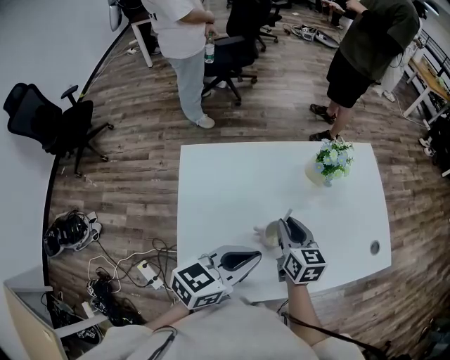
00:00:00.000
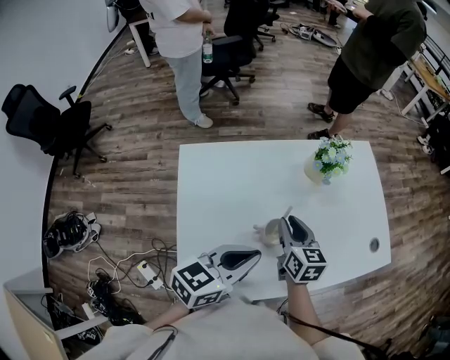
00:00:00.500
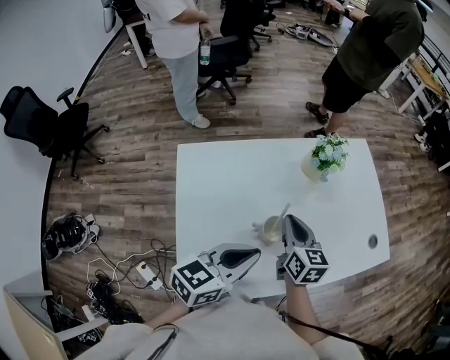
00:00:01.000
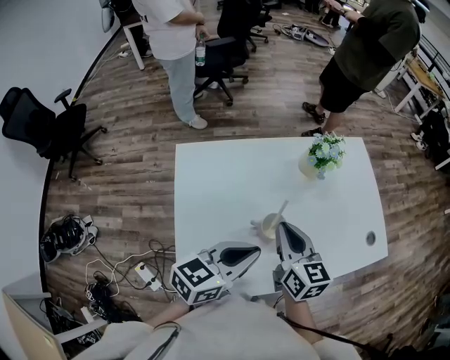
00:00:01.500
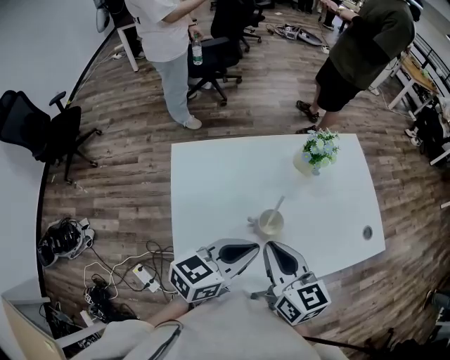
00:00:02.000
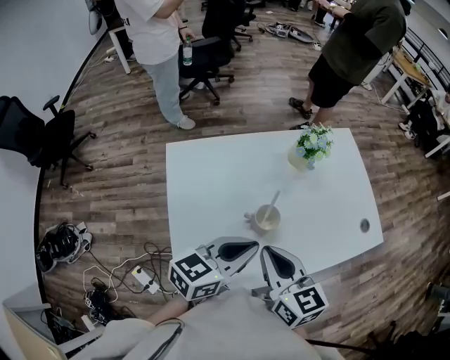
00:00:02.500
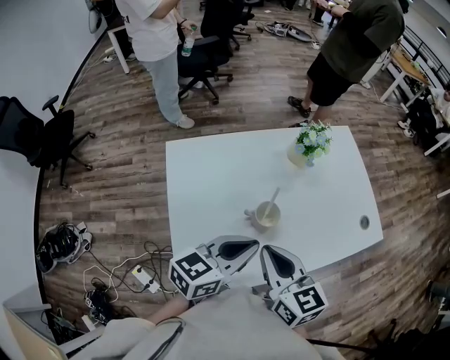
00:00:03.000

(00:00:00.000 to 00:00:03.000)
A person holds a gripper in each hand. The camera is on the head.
00:00:00.000 - 00:00:01.500: The right gripper is displaced upward by about 10 cm.
00:00:01.500 - 00:00:03.000: The right gripper travels backward by roughly 10 cm.

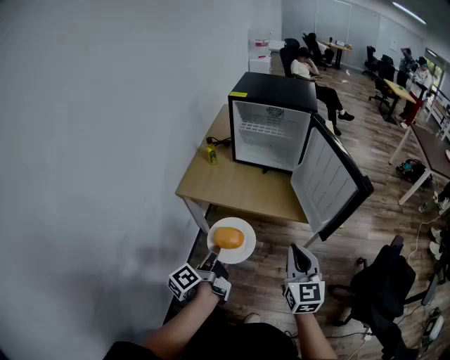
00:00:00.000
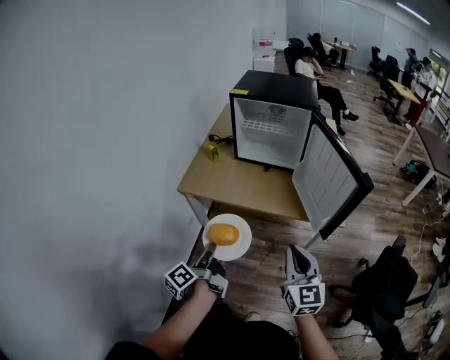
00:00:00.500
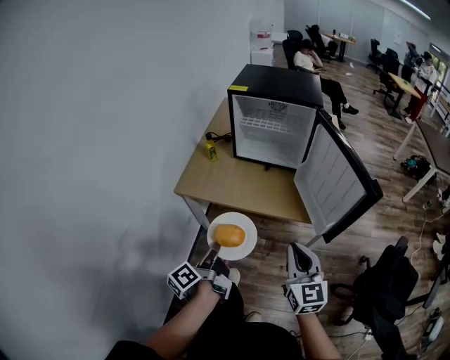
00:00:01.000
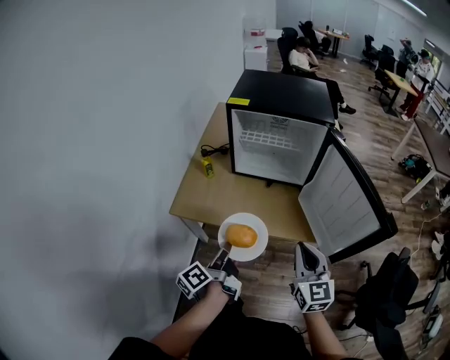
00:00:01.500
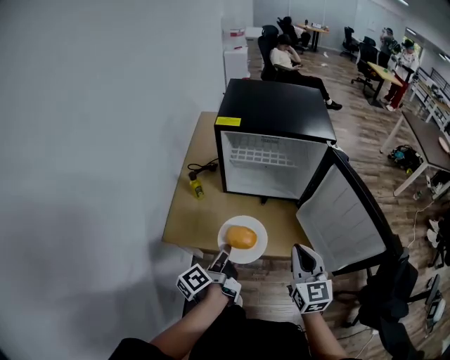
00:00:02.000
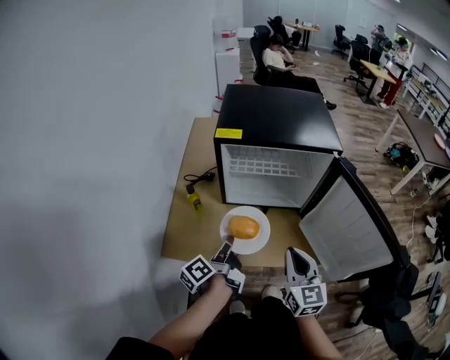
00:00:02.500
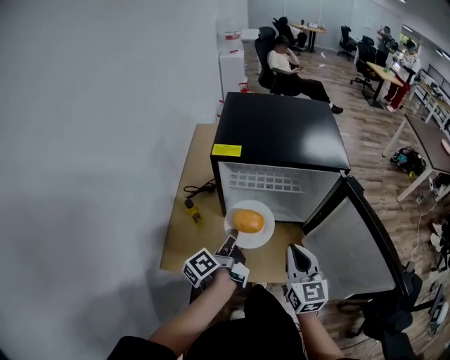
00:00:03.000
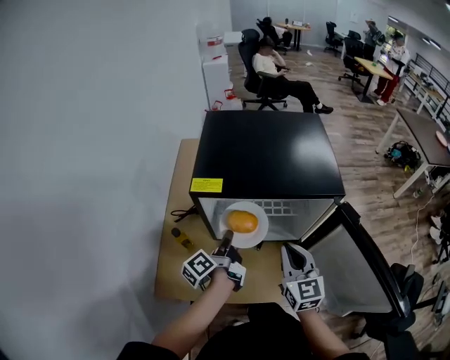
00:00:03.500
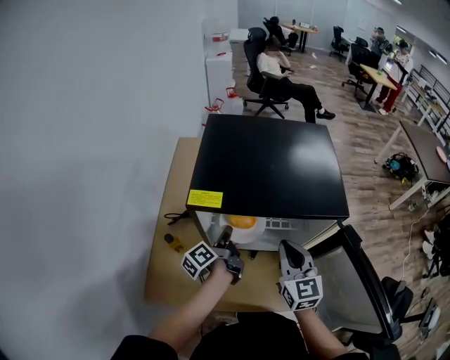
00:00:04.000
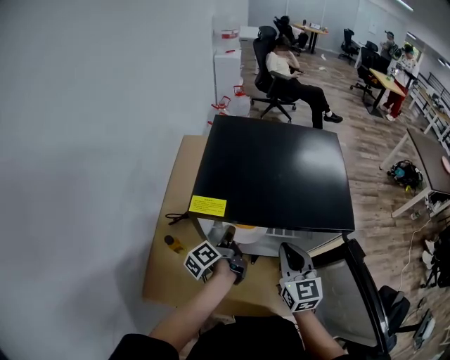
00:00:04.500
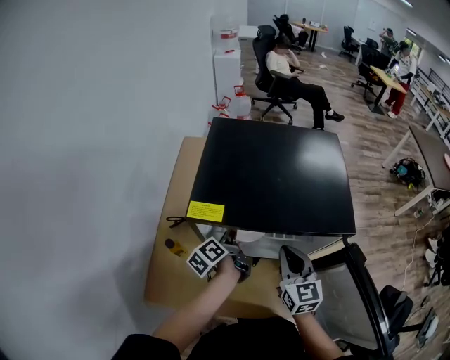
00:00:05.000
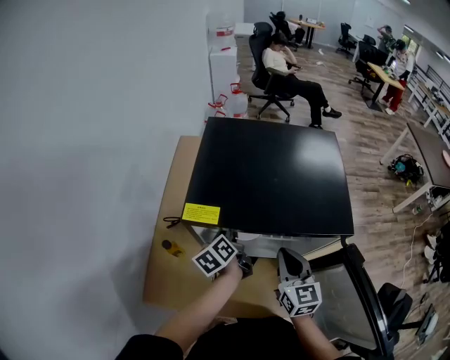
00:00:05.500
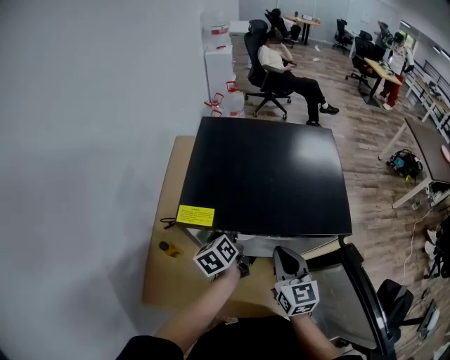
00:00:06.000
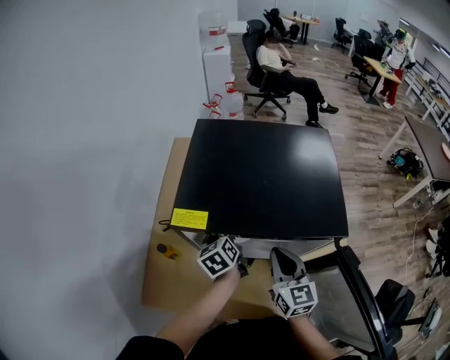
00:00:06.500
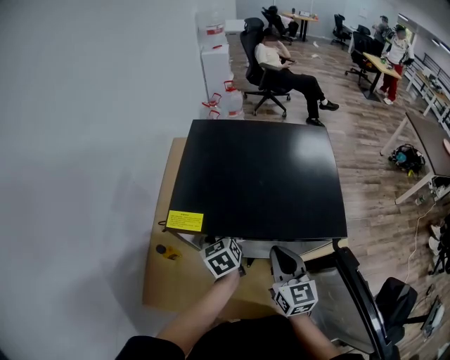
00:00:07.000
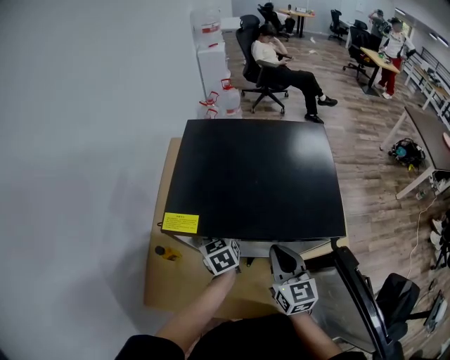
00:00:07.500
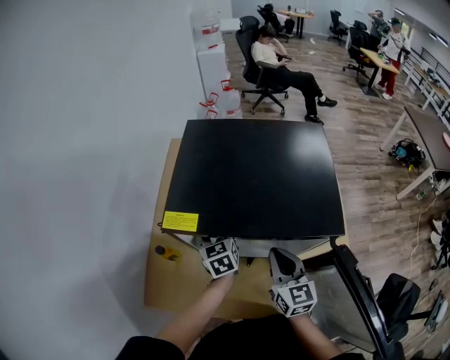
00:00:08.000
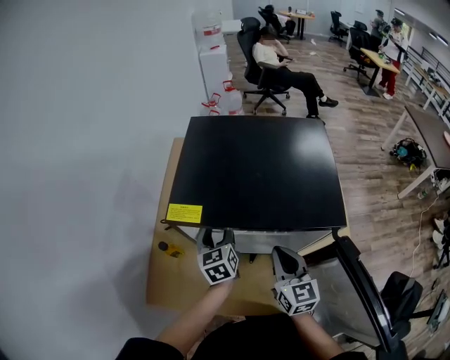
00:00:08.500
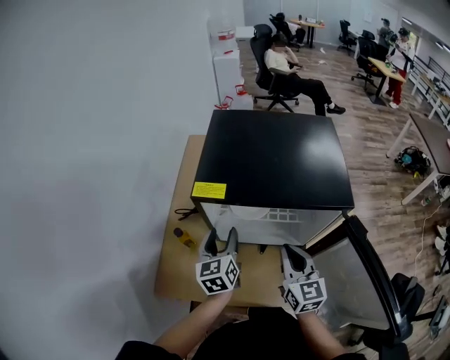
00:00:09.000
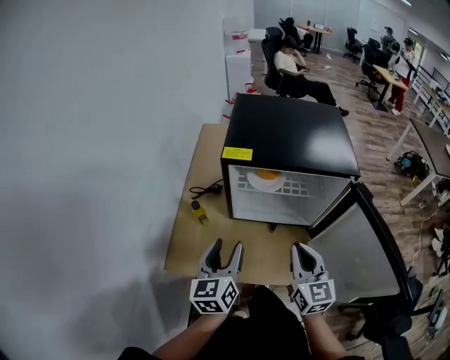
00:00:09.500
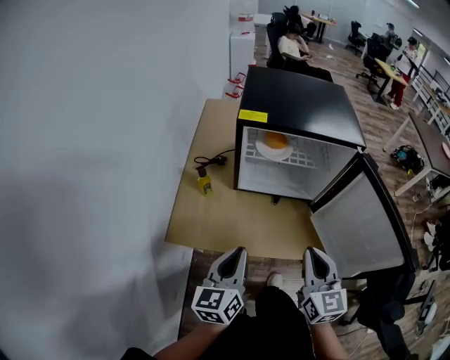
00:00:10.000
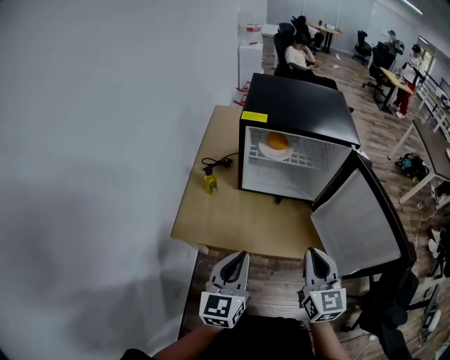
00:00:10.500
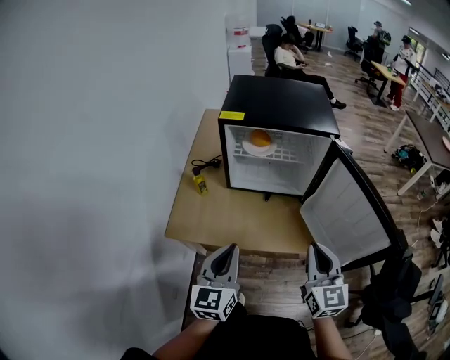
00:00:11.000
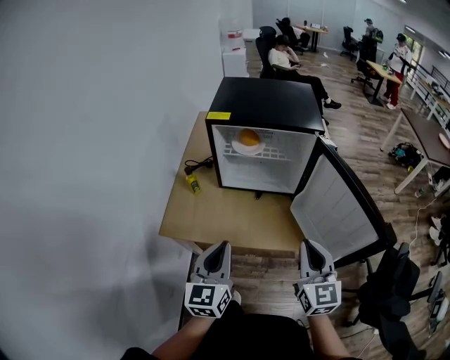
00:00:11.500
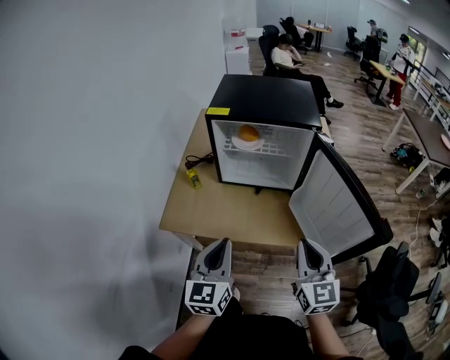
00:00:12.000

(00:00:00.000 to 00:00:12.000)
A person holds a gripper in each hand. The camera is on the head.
00:00:00.000 - 00:00:02.000: The grippers both shift forward by roughly 25 cm.
00:00:02.000 - 00:00:04.000: Both grippers move forward, some 30 cm.
00:00:04.000 - 00:00:06.000: The left gripper goes roughly 5 cm forward, changes its angle by some 40 degrees, and opens up.
00:00:06.000 - 00:00:08.000: The left gripper rotates about 30 degrees, and opens its fingers.
00:00:08.000 - 00:00:10.000: The two grippers go approximately 30 cm backward. The left gripper turns by some 30 degrees, and closes.
00:00:10.000 - 00:00:12.000: The left gripper goes some 15 cm backward, to the right and upward. Meanwhile the right gripper travels to the right and backward by approximately 15 cm.

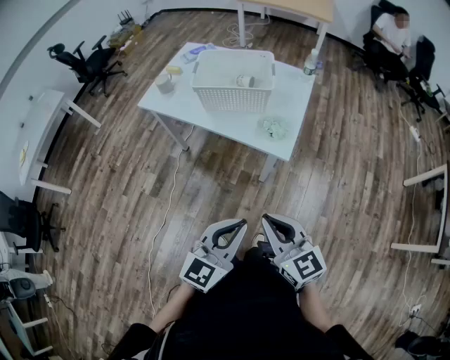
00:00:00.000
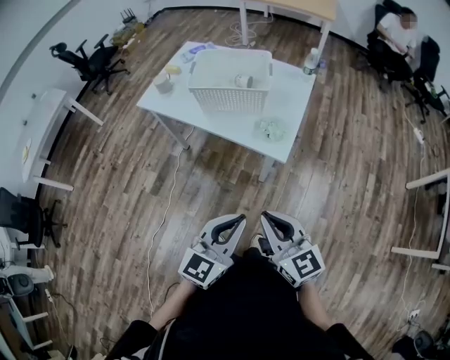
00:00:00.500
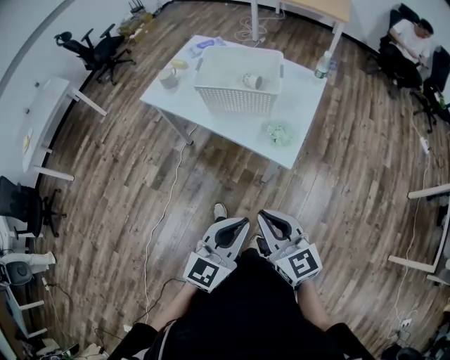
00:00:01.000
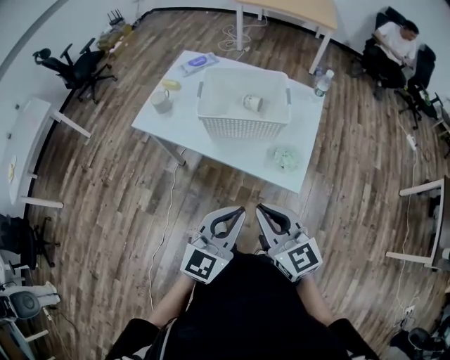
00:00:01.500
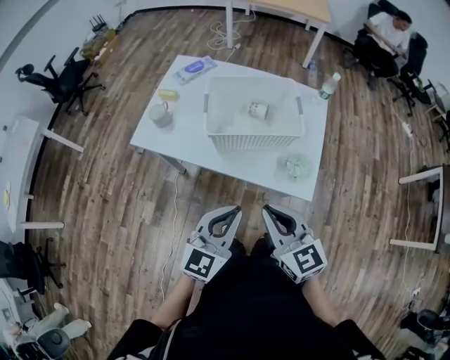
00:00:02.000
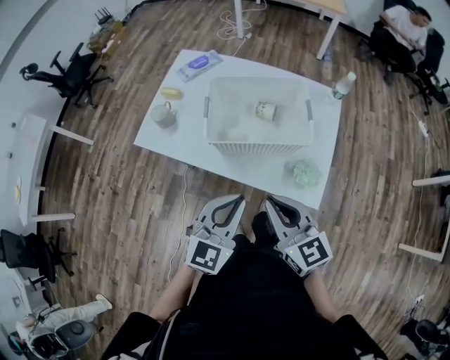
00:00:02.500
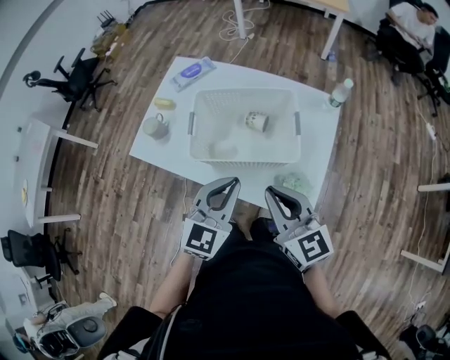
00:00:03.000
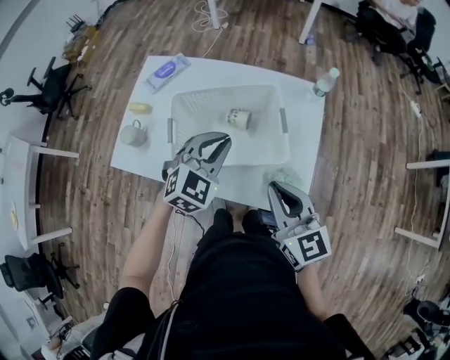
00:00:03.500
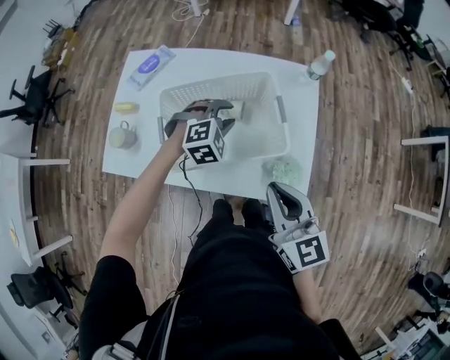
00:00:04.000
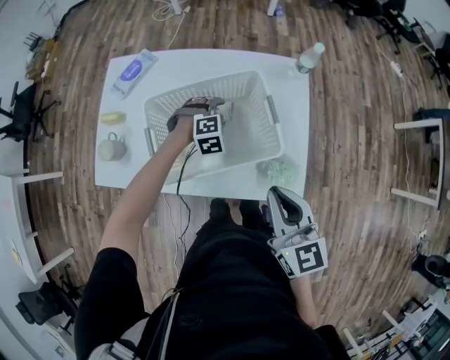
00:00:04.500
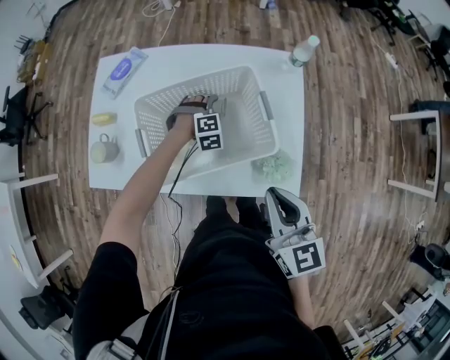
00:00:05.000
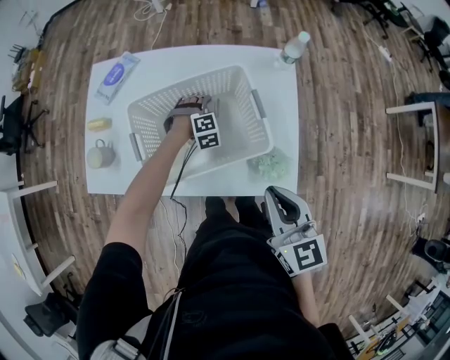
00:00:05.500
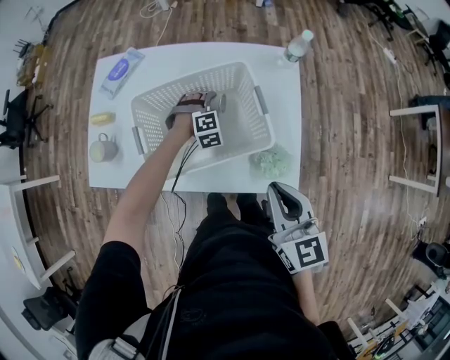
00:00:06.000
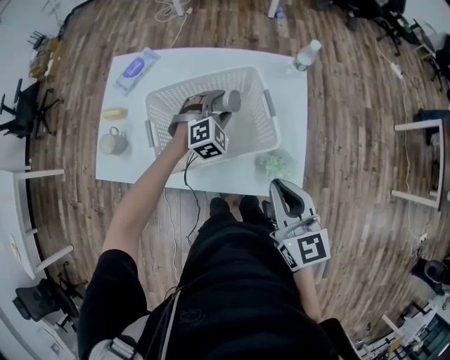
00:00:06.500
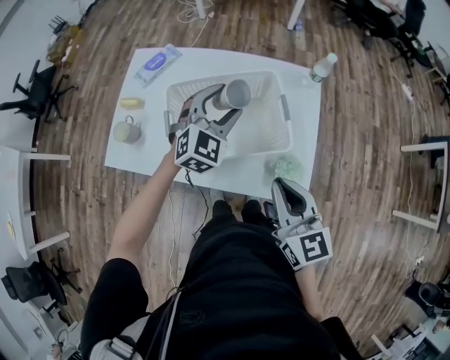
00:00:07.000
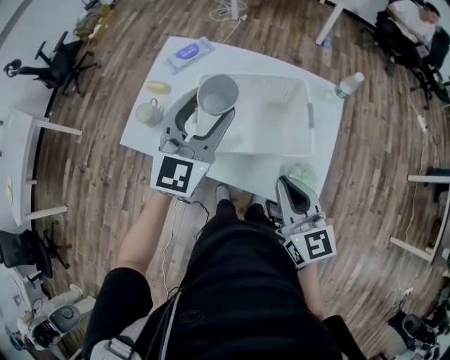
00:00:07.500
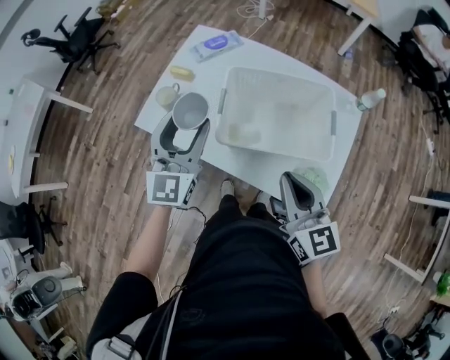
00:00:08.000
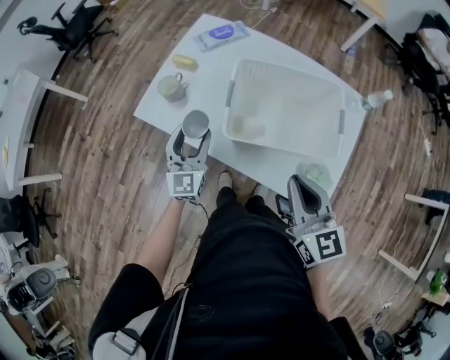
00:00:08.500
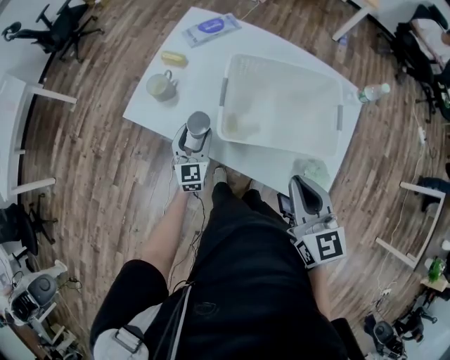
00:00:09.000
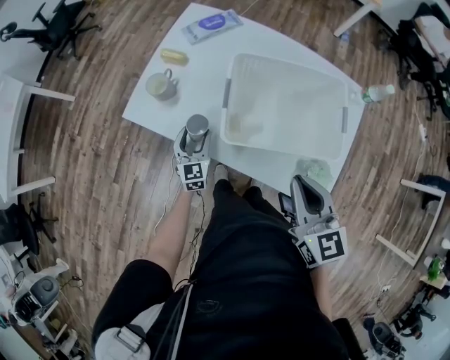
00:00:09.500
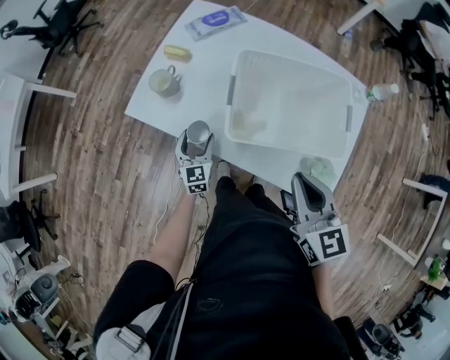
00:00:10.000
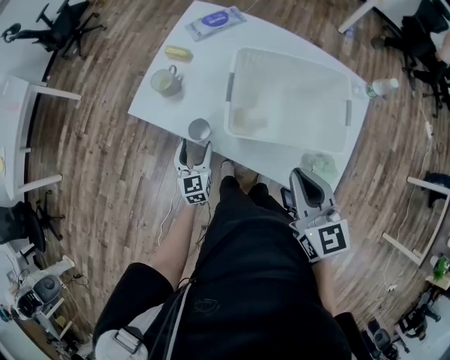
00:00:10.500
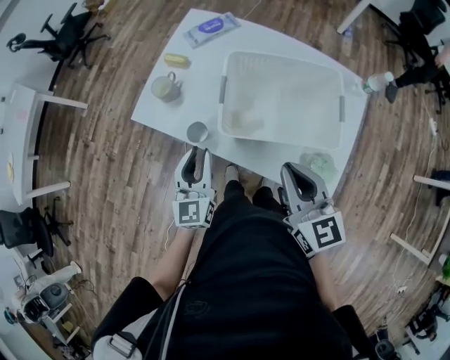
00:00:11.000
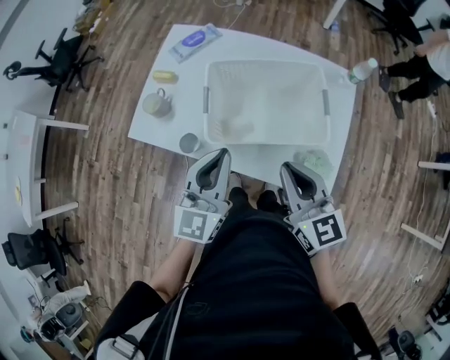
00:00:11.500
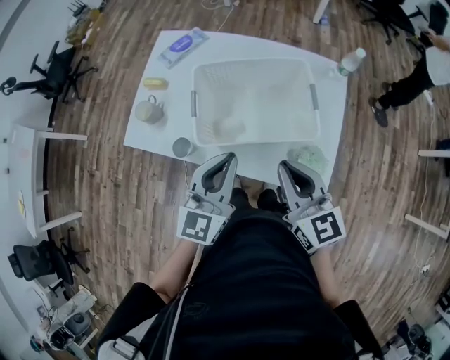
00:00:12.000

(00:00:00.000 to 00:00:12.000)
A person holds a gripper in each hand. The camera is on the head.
00:00:00.000 - 00:00:02.000: Both grippers move forward and to the left, some 30 cm.
00:00:02.000 - 00:00:04.000: The right gripper is displaced forward and to the right by about 20 cm; the left gripper travels forward by roughly 40 cm, points its fingers some 40 degrees further downward, and opens up.
00:00:04.000 - 00:00:06.000: The left gripper shifts some 15 cm downward.
00:00:06.000 - 00:00:08.000: The left gripper travels upward by approximately 30 cm, and tilts its fingers some 60 degrees upward; the right gripper moves about 10 cm, and swivels roughly 20 degrees.
00:00:08.000 - 00:00:10.000: The left gripper goes approximately 30 cm downward, and rotates roughly 30 degrees.
00:00:10.000 - 00:00:12.000: The right gripper changes place by roughly 5 cm, while the left gripper is displaced upward and to the right by some 35 cm, rotates roughly 40 degrees, and closes its fingers.
